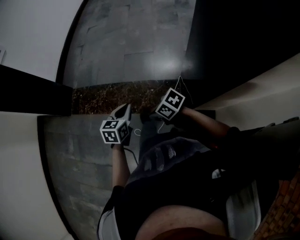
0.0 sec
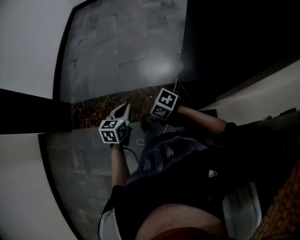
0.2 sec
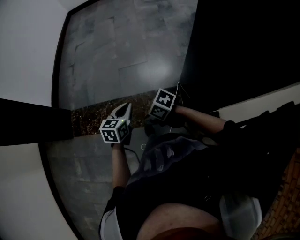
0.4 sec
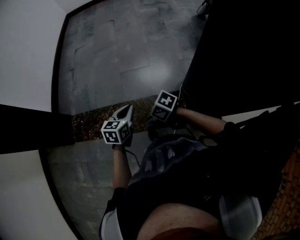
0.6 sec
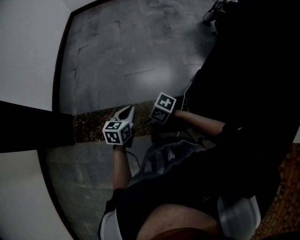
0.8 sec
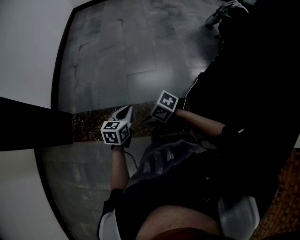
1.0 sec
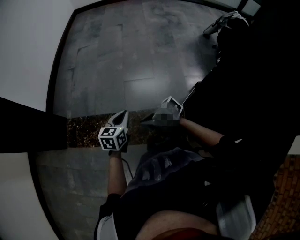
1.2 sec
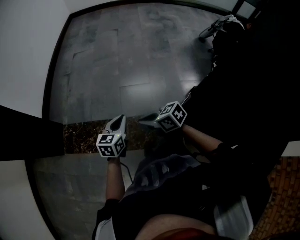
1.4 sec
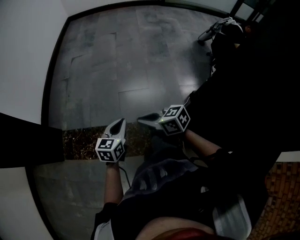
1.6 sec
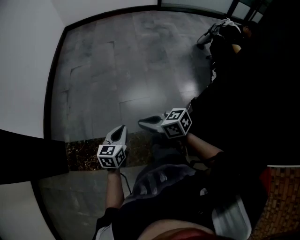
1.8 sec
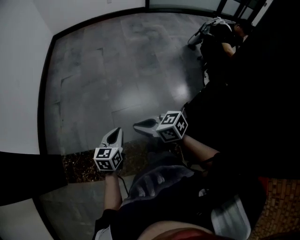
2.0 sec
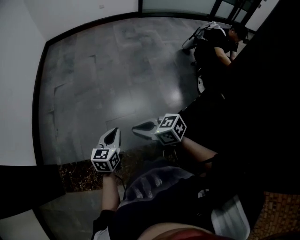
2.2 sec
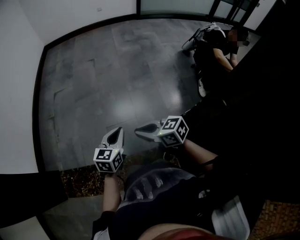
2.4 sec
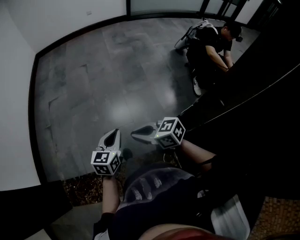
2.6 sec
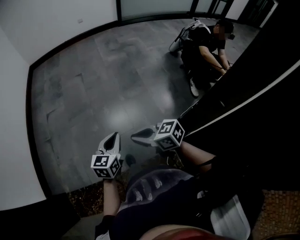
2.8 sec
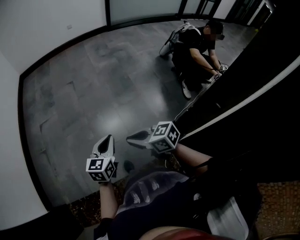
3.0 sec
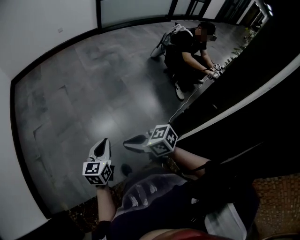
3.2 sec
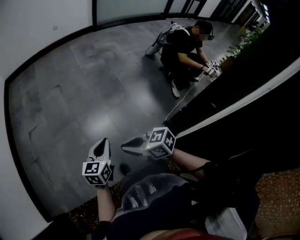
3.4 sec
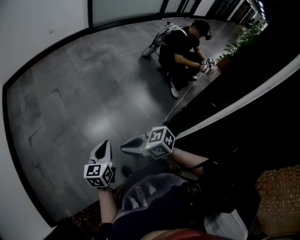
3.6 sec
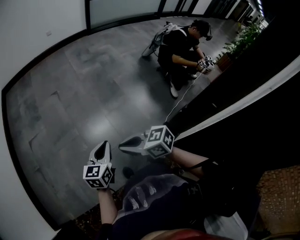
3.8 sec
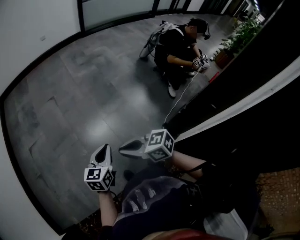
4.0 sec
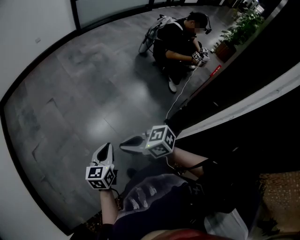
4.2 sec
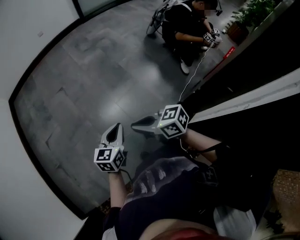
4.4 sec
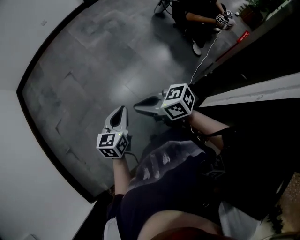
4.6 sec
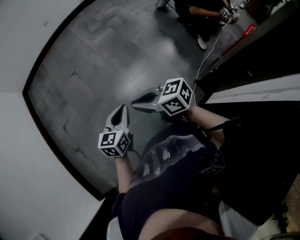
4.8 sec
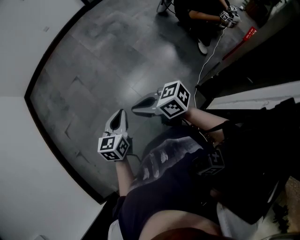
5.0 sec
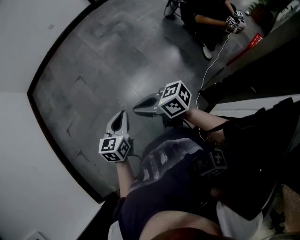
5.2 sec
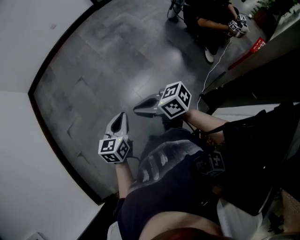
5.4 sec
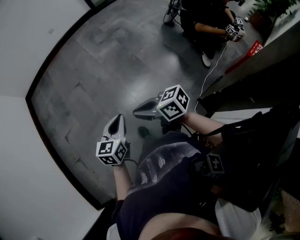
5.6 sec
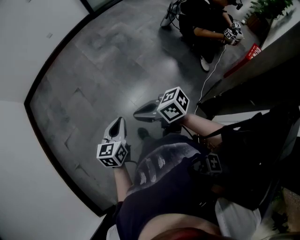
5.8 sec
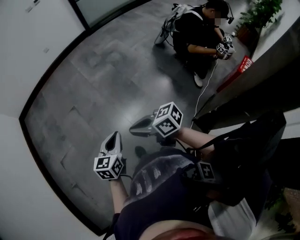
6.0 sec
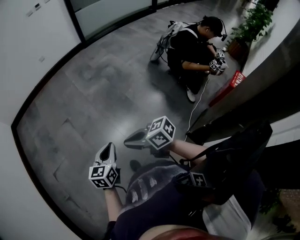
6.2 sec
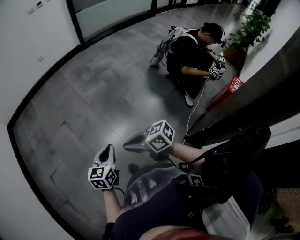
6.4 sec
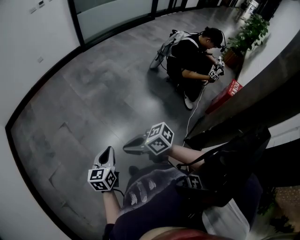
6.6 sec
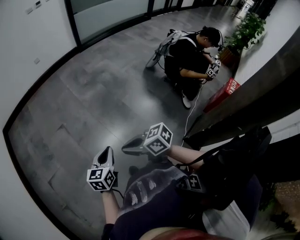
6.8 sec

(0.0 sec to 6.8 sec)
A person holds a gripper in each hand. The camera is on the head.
0.0 sec - 1.4 sec: The left gripper changes place by about 30 cm, while the right gripper ends up approximately 35 cm from where it was, and rotates some 20 degrees.
1.4 sec - 2.8 sec: Both grippers move forward and to the right, roughly 40 cm. The right gripper swivels roughly 20 degrees.
2.8 sec - 4.0 sec: Both grippers travel together forward, some 15 cm.
4.0 sec - 5.4 sec: The two grippers go some 20 cm forward and to the right.
5.4 sec - 6.8 sec: Both grippers move forward and to the left, approximately 20 cm.

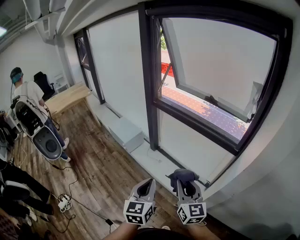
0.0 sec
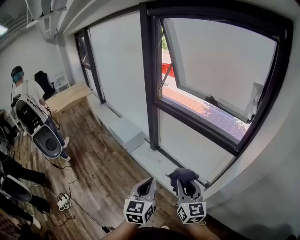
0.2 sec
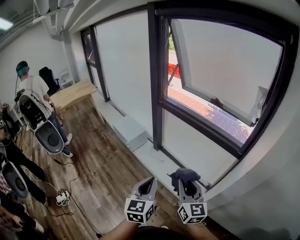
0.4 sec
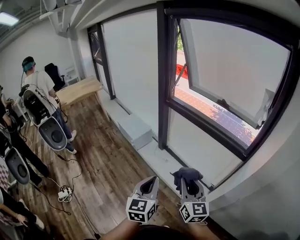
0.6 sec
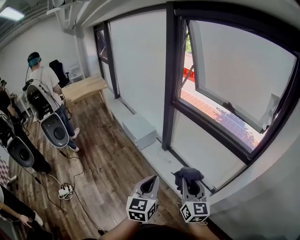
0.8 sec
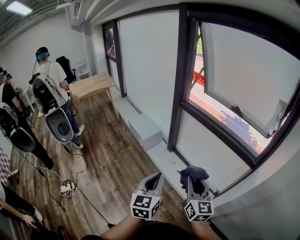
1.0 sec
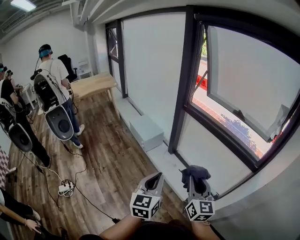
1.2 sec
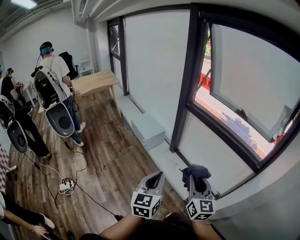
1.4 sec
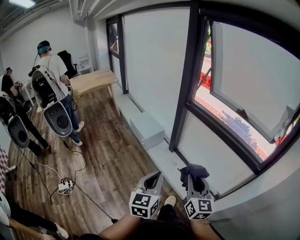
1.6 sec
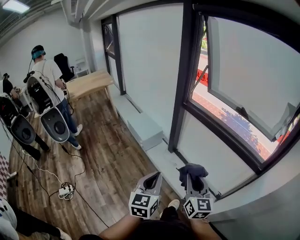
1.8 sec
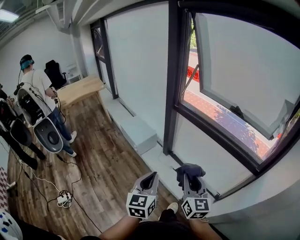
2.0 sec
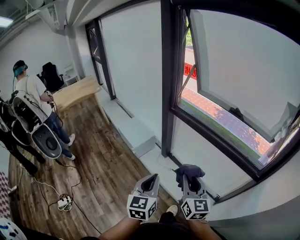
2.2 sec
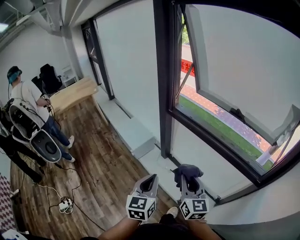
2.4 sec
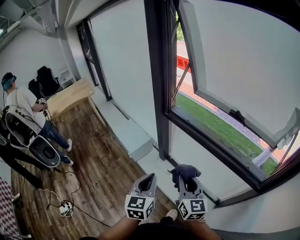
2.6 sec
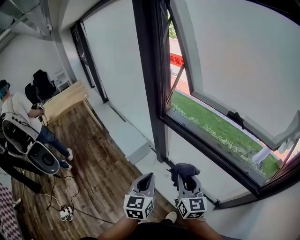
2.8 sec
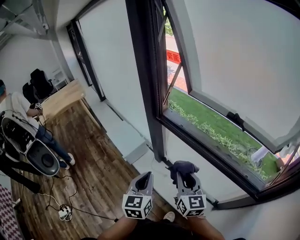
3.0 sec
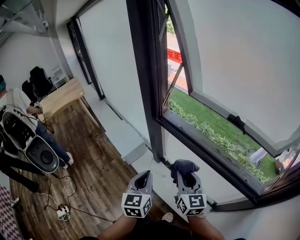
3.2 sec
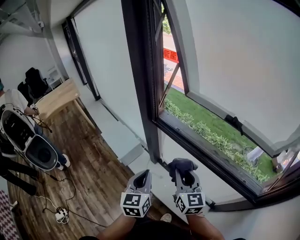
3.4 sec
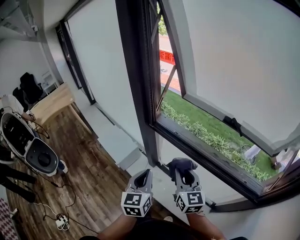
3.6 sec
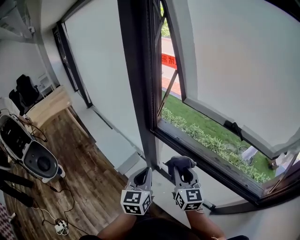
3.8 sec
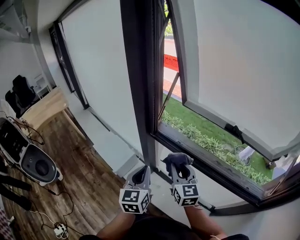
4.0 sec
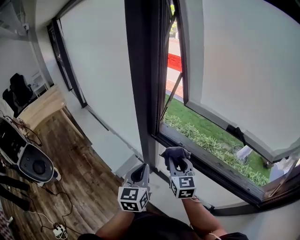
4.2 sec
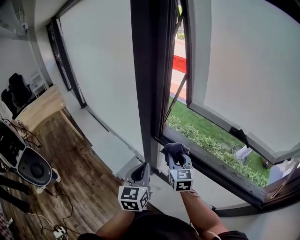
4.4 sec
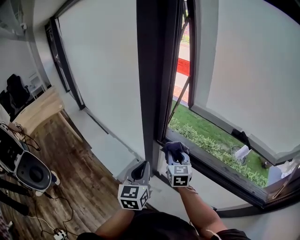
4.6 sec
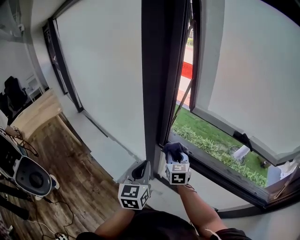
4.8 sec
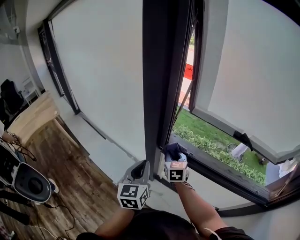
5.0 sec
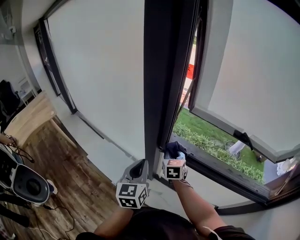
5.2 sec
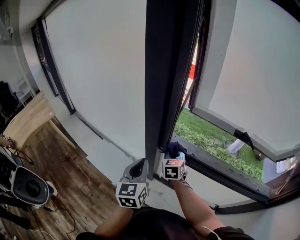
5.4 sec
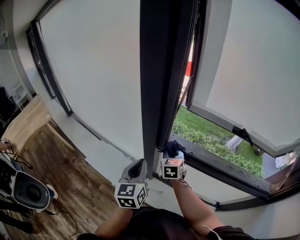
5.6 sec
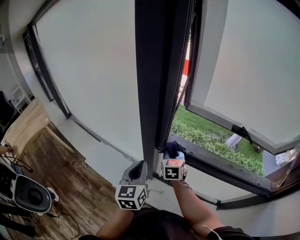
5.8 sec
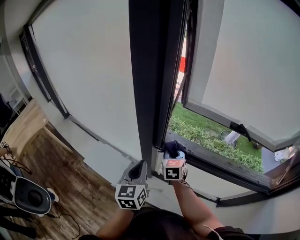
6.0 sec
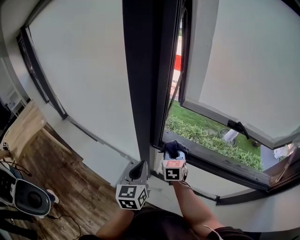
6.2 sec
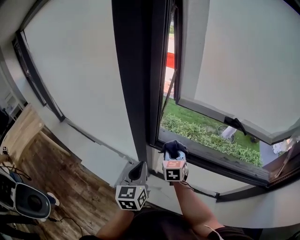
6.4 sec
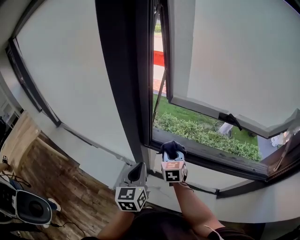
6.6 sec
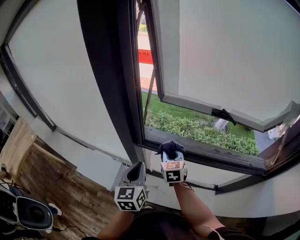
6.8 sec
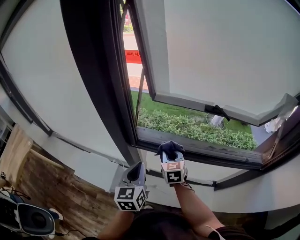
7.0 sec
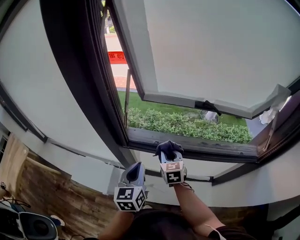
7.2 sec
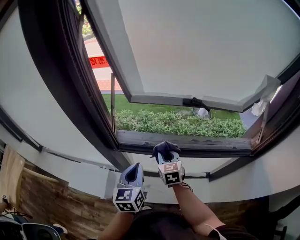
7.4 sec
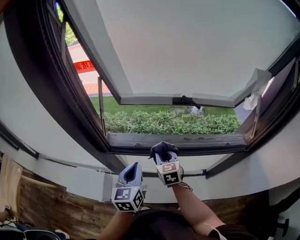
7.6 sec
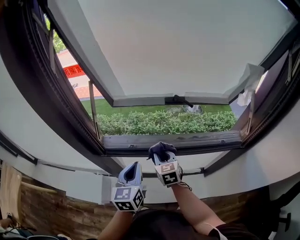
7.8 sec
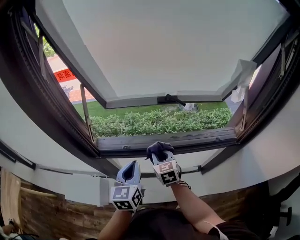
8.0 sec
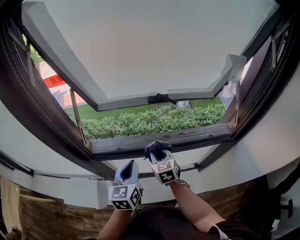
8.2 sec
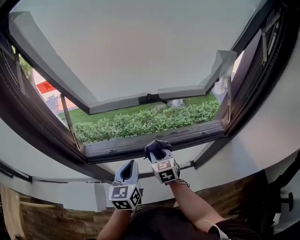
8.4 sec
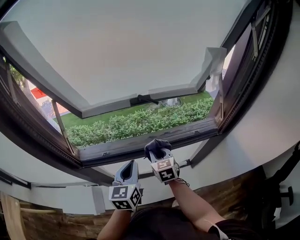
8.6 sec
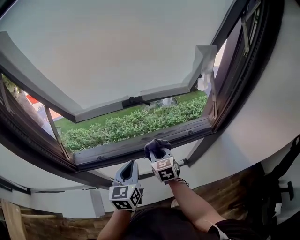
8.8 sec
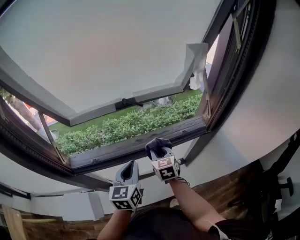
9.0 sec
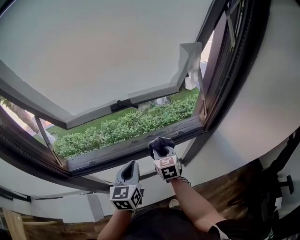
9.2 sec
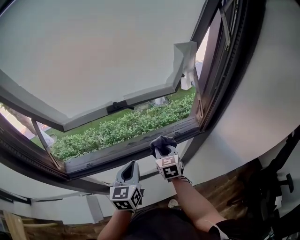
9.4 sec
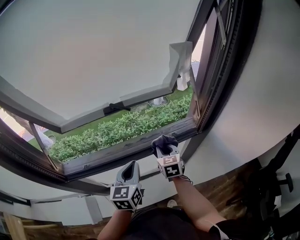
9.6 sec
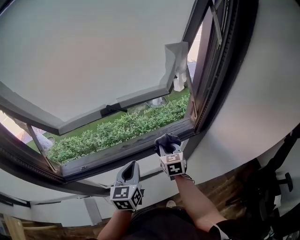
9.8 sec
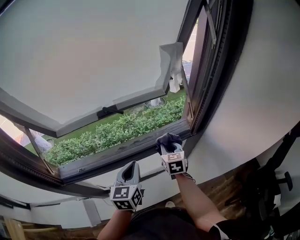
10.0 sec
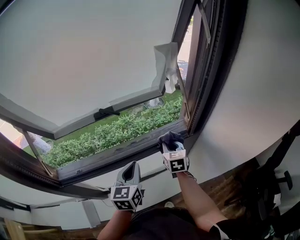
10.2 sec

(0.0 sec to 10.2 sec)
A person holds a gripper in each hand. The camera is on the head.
0.0 sec - 1.4 sec: Both grippers move to the left, about 10 cm.
1.4 sec - 3.0 sec: Both grippers move forward, roughly 35 cm.
3.0 sec - 4.4 sec: Both grippers travel together forward, some 25 cm.
4.4 sec - 5.8 sec: The right gripper moves forward and downward, some 10 cm, and turns by about 20 degrees. The left gripper is displaced forward and to the left by roughly 10 cm.
5.8 sec - 7.2 sec: Both grippers travel together to the right, about 15 cm.
7.2 sec - 8.8 sec: The two grippers go about 25 cm to the right. The left gripper changes its angle by some 20 degrees.
8.8 sec - 10.2 sec: The right gripper is displaced to the right by roughly 20 cm. Meanwhile the left gripper shifts roughly 15 cm to the right.

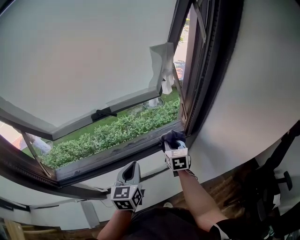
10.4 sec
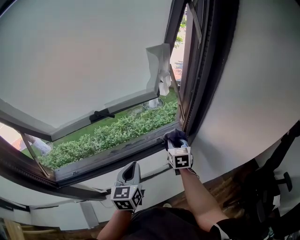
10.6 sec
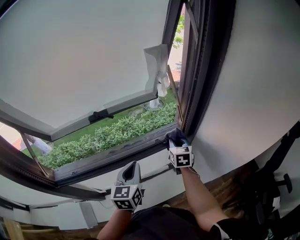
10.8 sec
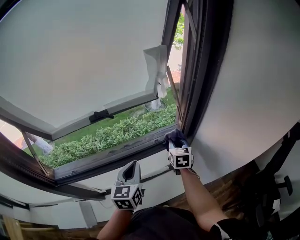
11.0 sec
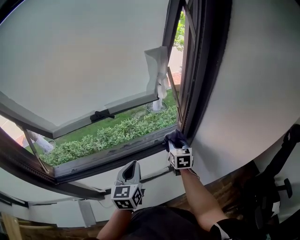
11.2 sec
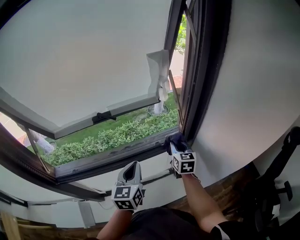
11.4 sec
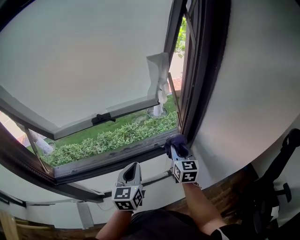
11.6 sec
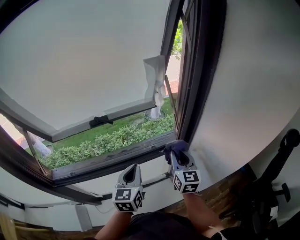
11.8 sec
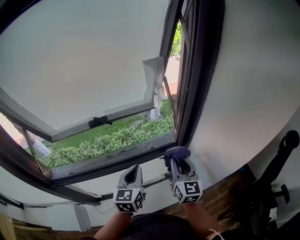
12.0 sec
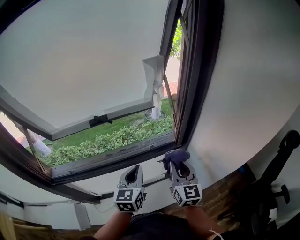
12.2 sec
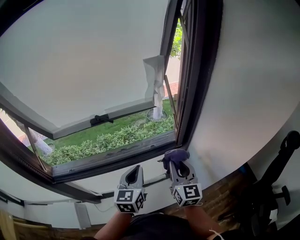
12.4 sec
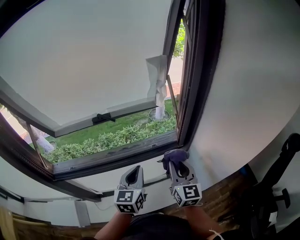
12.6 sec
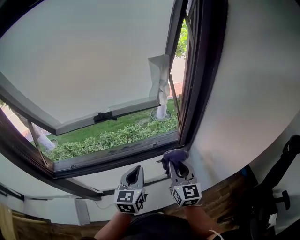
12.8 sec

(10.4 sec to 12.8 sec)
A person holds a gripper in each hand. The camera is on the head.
10.4 sec - 11.6 sec: The right gripper heads upward and to the right, covering some 10 cm.
11.6 sec - 12.8 sec: The right gripper heads backward, covering approximately 10 cm.

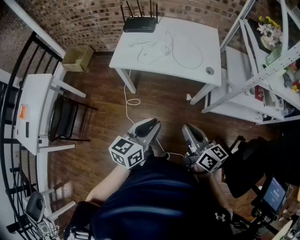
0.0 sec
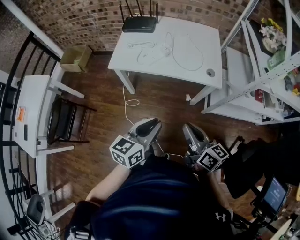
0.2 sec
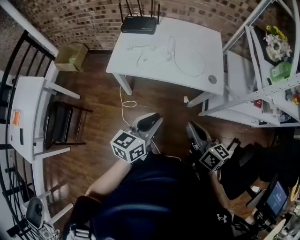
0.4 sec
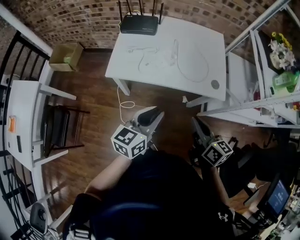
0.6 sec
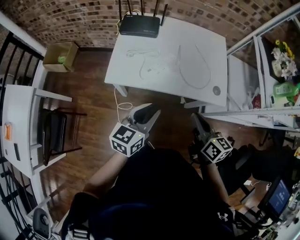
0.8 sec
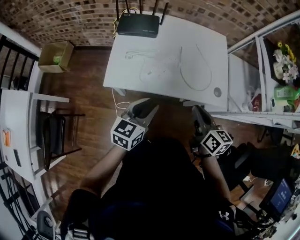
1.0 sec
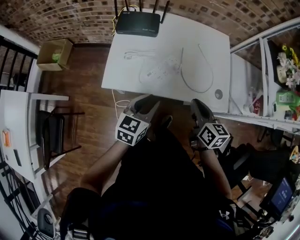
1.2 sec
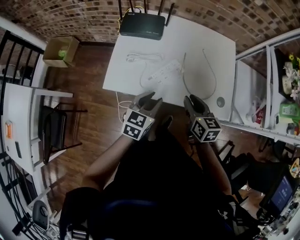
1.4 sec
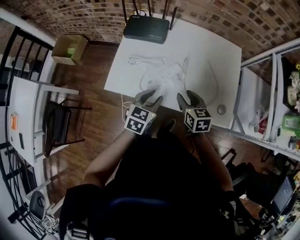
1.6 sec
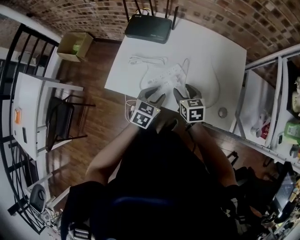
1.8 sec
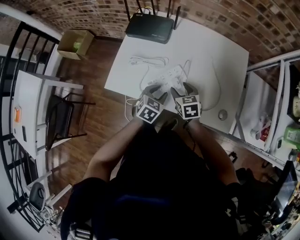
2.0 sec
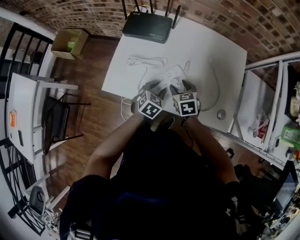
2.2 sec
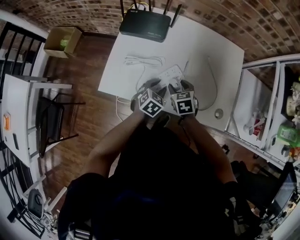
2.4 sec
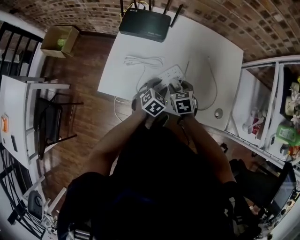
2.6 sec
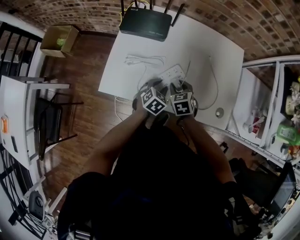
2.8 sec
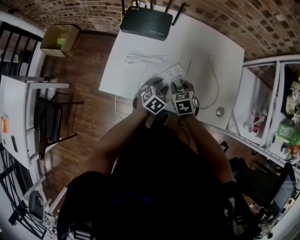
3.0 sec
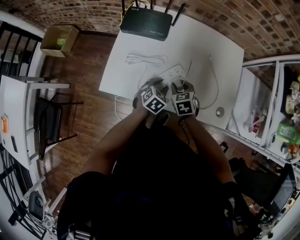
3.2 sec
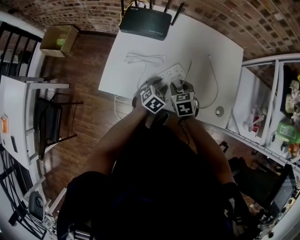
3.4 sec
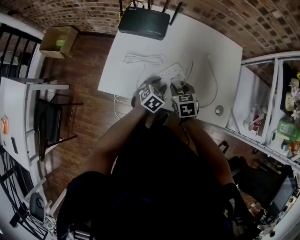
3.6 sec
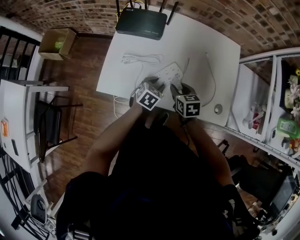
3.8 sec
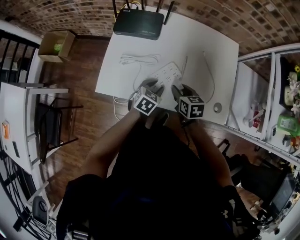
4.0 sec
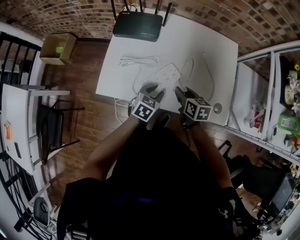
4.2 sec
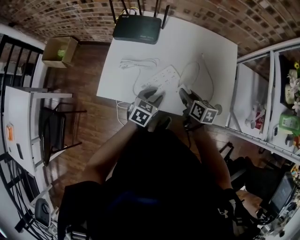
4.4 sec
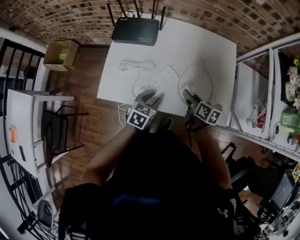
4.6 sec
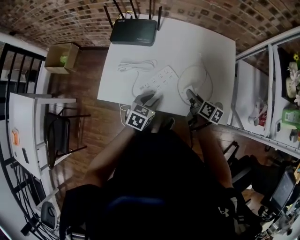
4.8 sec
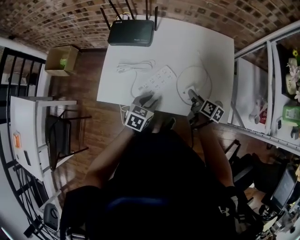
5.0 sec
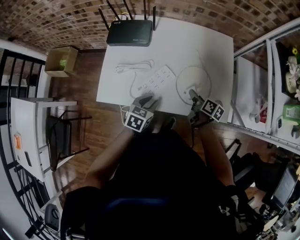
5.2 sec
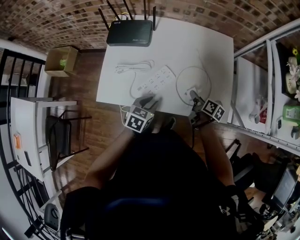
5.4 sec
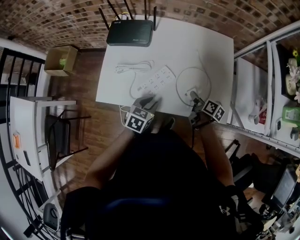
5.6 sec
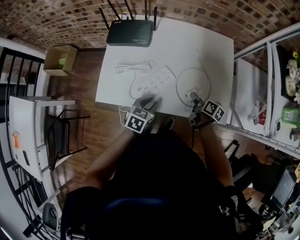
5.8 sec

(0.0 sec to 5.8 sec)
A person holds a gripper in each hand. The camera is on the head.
0.0 sec - 1.4 sec: The grippers both shift forward by roughly 35 cm. The right gripper swivels roughly 30 degrees.
1.4 sec - 2.8 sec: The grippers both shift downward and forward by about 20 cm. The left gripper rotates approximately 30 degrees. The right gripper turns by roughly 40 degrees, and opens, then closes once more.
2.8 sec - 4.4 sec: The right gripper heads to the right and upward, covering some 10 cm, and twists some 40 degrees clockwise, seen from behind, while the left gripper travels upward by some 5 cm.
4.4 sec - 5.8 sec: The right gripper moves to the right and downward, roughly 15 cm, and rotates roughly 30 degrees.
